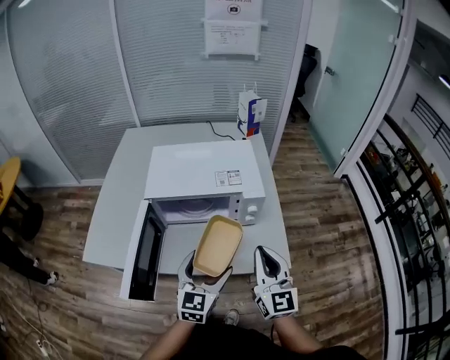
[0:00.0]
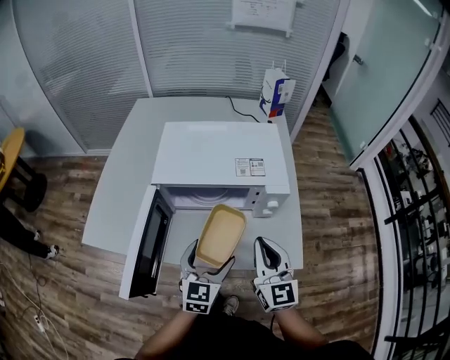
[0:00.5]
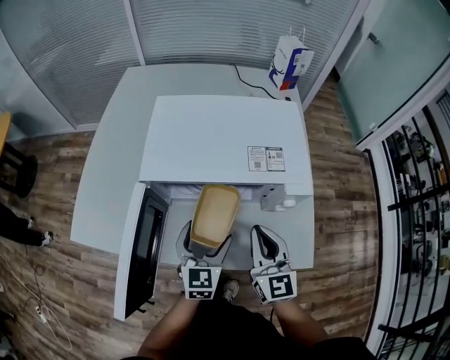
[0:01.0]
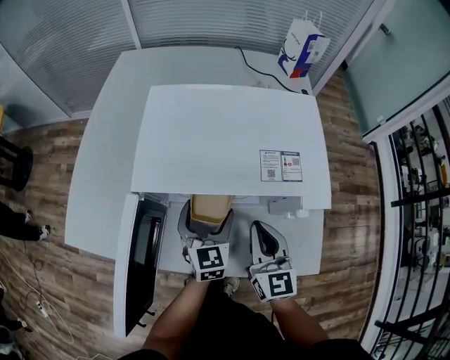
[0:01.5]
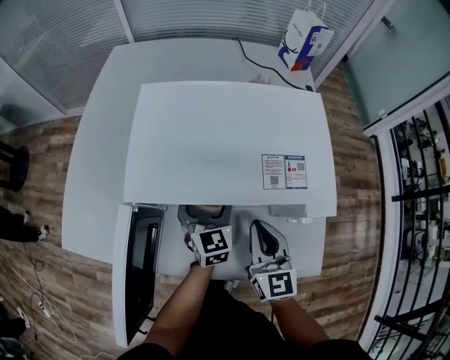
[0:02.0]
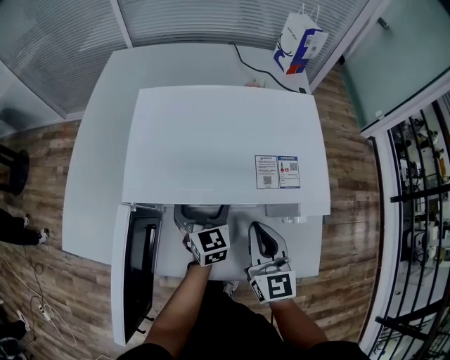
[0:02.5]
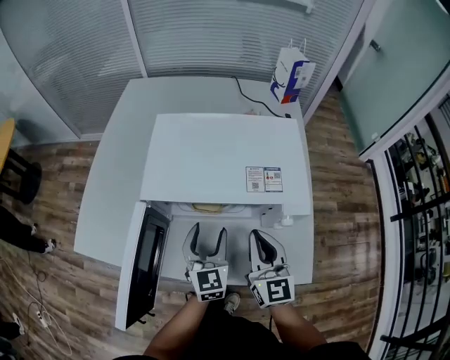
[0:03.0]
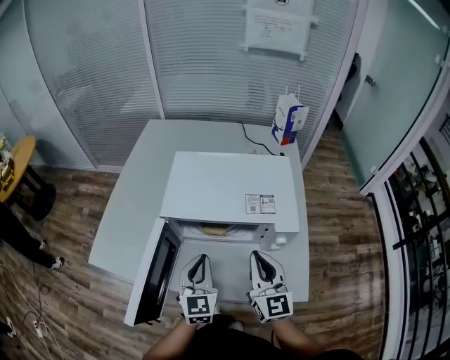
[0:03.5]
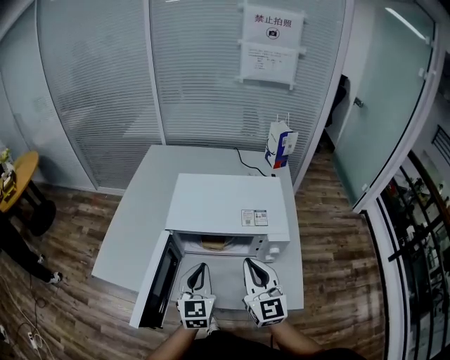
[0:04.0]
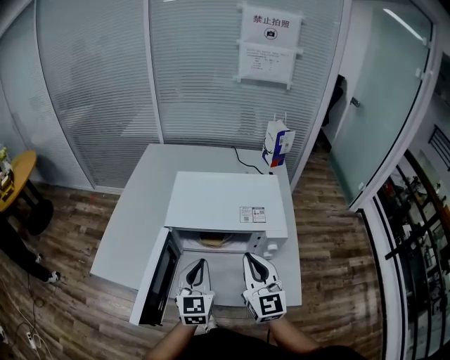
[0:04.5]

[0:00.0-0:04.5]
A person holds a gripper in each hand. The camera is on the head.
0:00.0 to 0:02.0: The right gripper is displaced forward, downward and to the left by about 25 cm; the left gripper moves forward and downward, some 30 cm, and rotates approximately 30 degrees.
0:02.0 to 0:04.5: The two grippers go approximately 20 cm upward and backward. The left gripper closes its fingers.

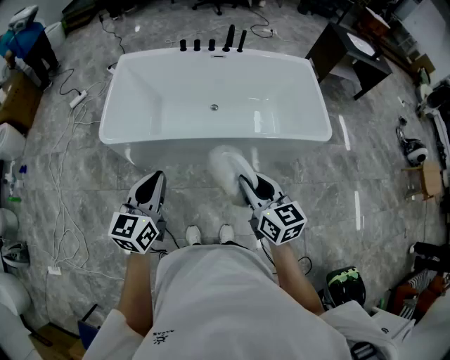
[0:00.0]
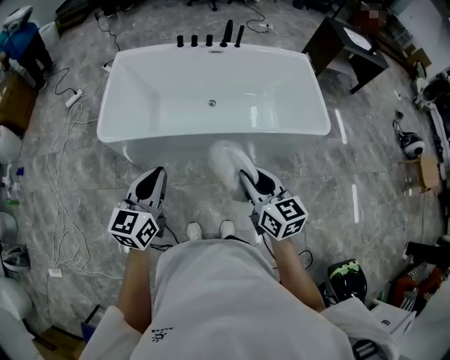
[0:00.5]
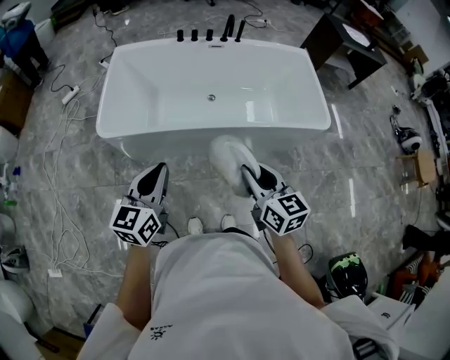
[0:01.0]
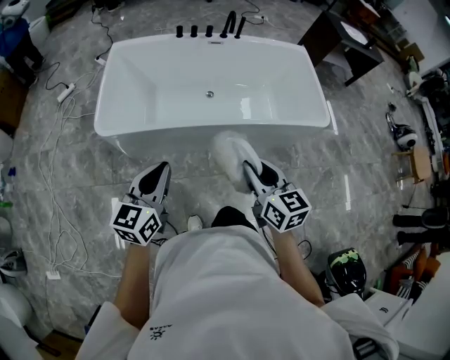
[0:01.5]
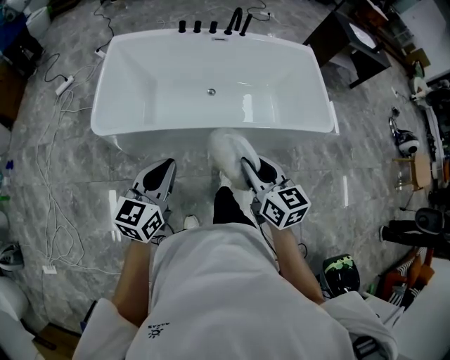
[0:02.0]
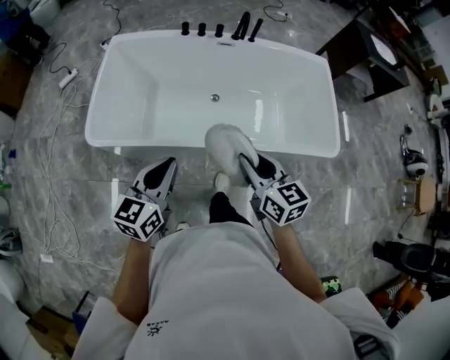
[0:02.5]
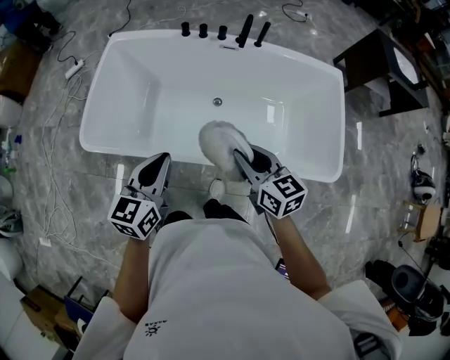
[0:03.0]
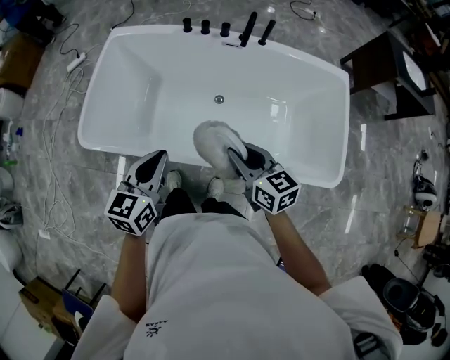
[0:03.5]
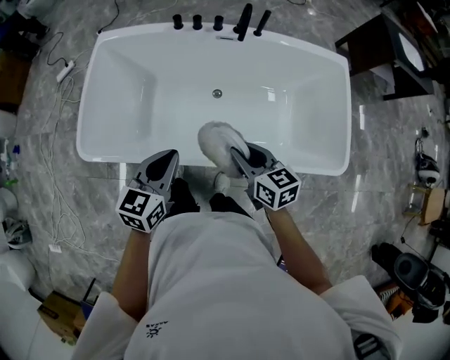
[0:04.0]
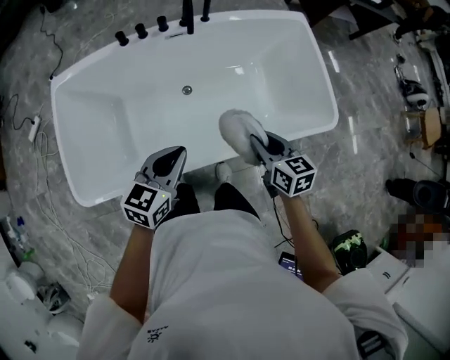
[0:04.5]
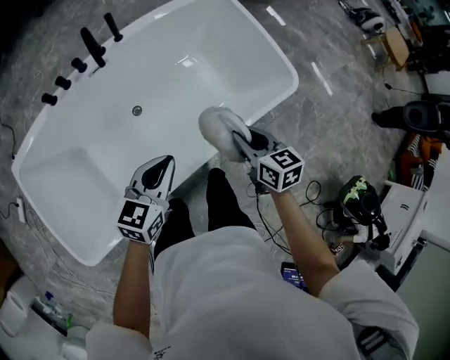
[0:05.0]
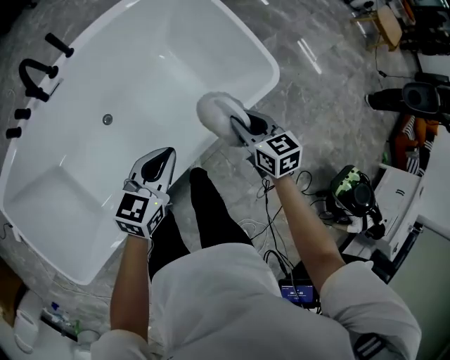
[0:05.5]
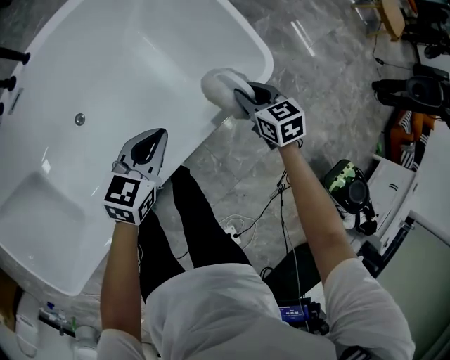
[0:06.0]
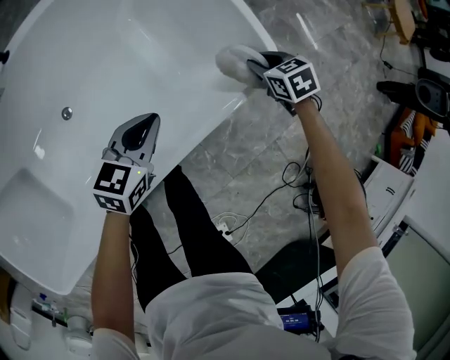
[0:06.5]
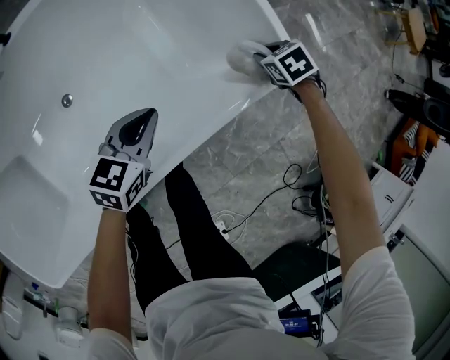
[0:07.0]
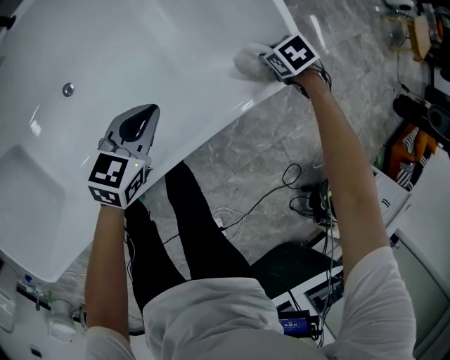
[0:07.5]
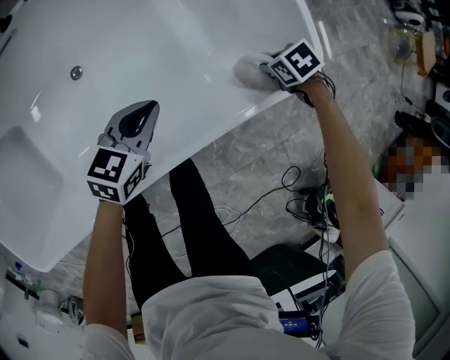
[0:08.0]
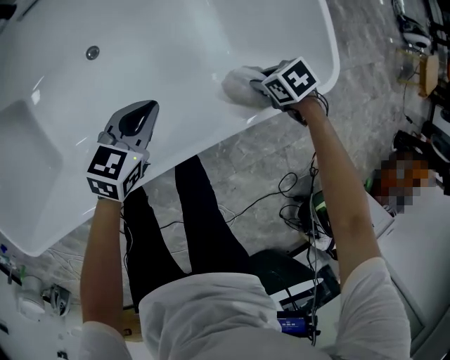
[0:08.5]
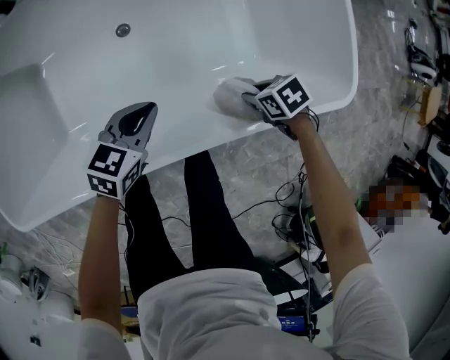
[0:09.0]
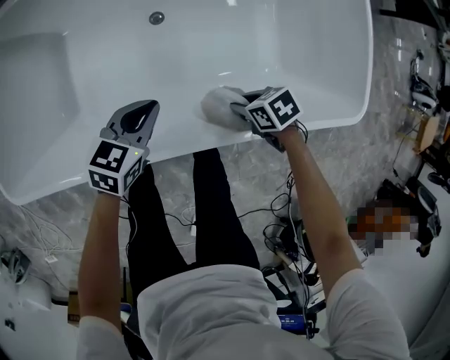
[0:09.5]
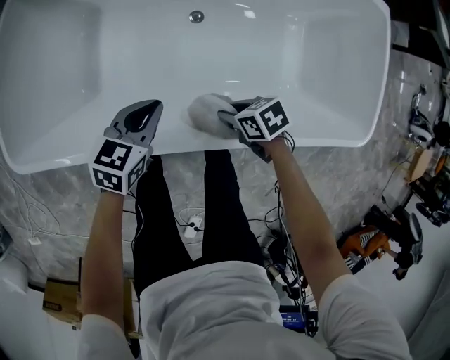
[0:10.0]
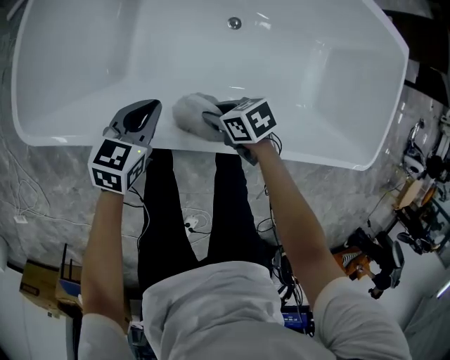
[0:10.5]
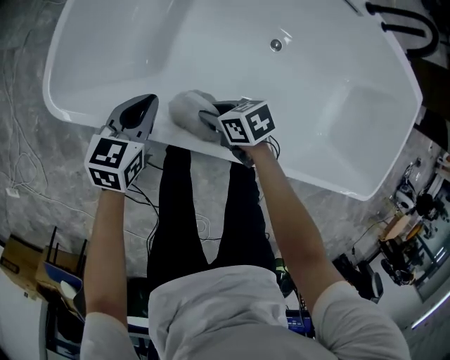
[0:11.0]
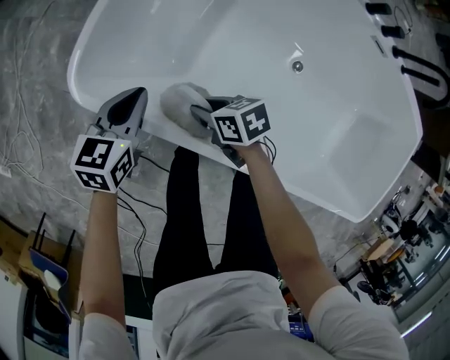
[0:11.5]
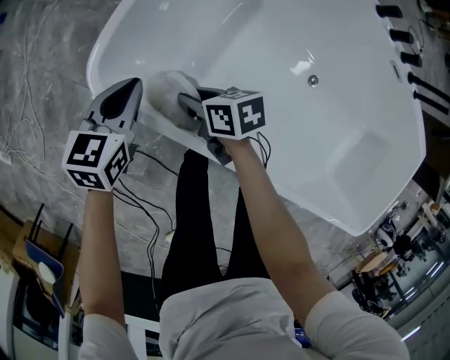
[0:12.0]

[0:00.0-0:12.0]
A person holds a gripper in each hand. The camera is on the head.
0:00.0 to 0:02.0: The left gripper changes place by some 5 cm.
0:02.0 to 0:04.0: The left gripper ends up roughly 30 cm from where it was.
0:04.0 to 0:06.0: The left gripper changes place by roughly 50 cm, and swivels roughly 50 degrees.
0:06.0 to 0:08.0: The left gripper moves downward, some 10 cm.
0:08.0 to 0:10.0: The left gripper ends up about 40 cm from where it was, and swivels some 30 degrees.
0:10.0 to 0:12.0: The left gripper shifts by about 50 cm, and changes its angle by some 40 degrees.

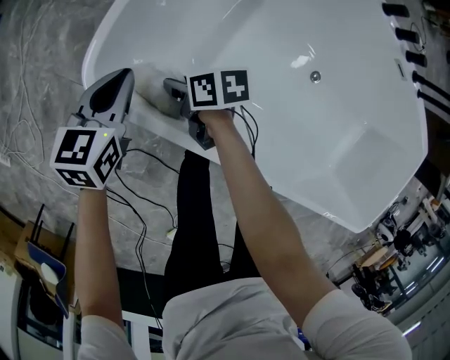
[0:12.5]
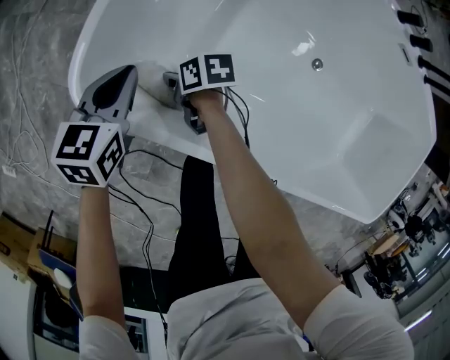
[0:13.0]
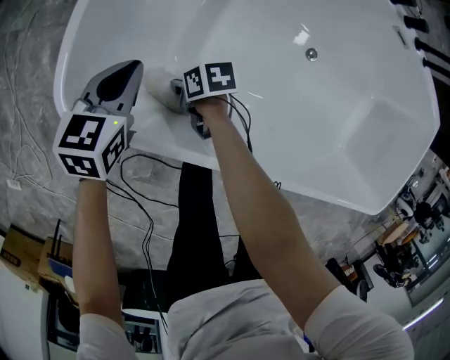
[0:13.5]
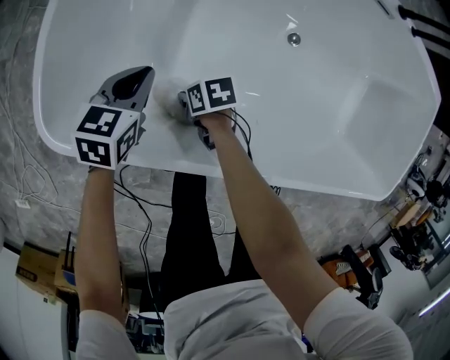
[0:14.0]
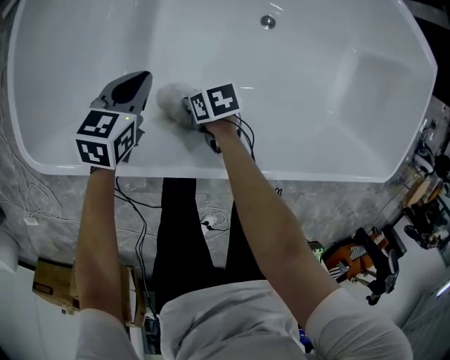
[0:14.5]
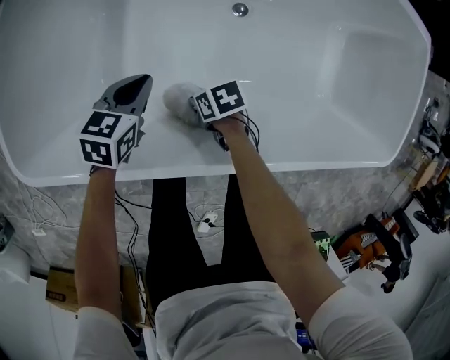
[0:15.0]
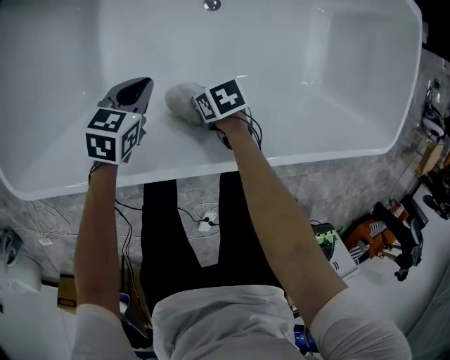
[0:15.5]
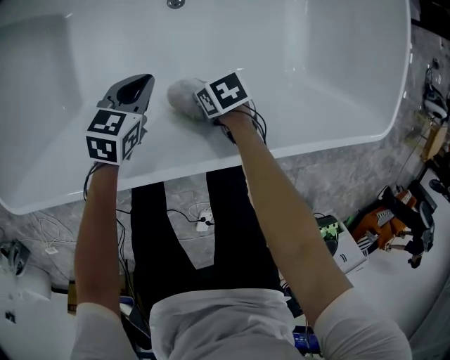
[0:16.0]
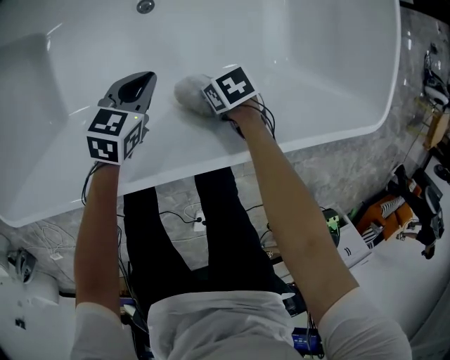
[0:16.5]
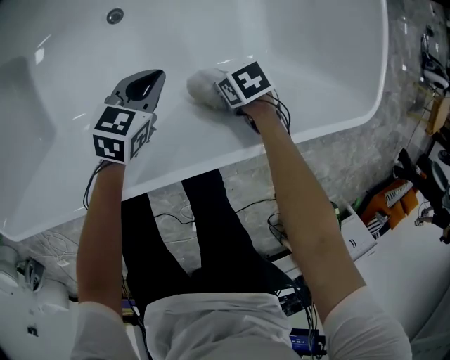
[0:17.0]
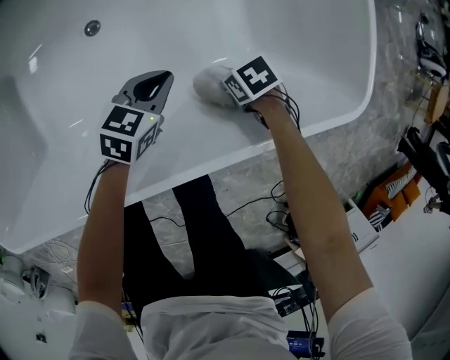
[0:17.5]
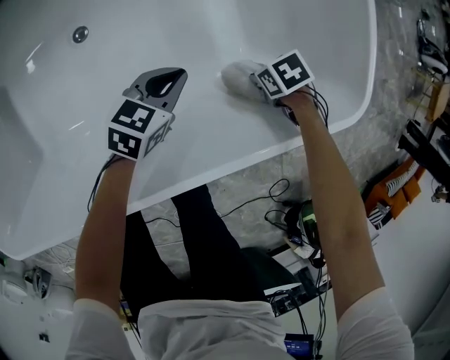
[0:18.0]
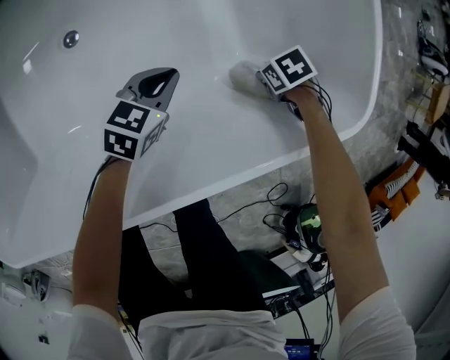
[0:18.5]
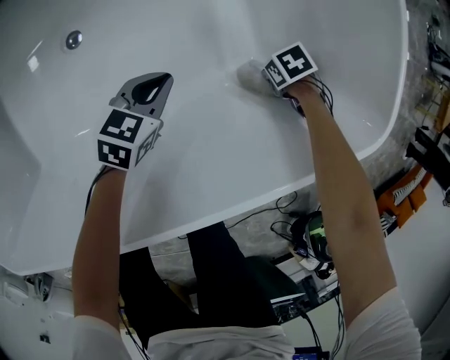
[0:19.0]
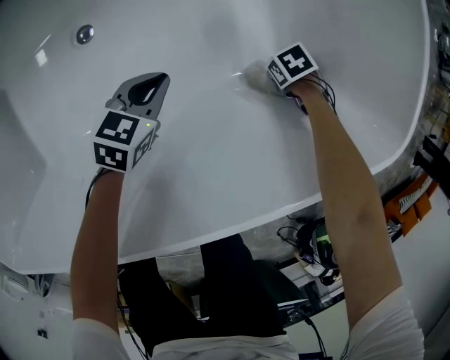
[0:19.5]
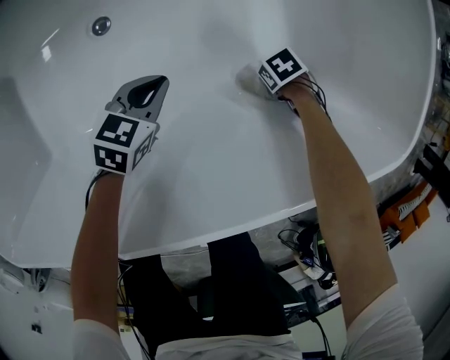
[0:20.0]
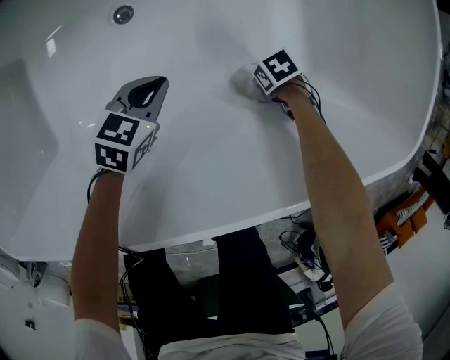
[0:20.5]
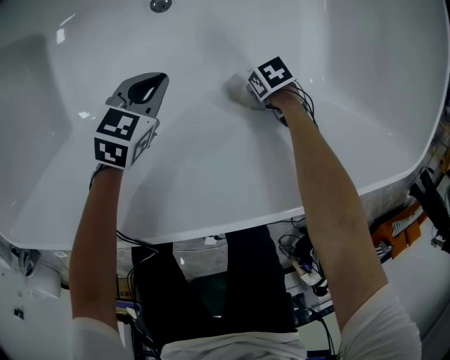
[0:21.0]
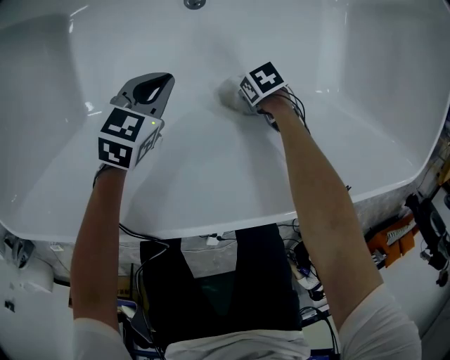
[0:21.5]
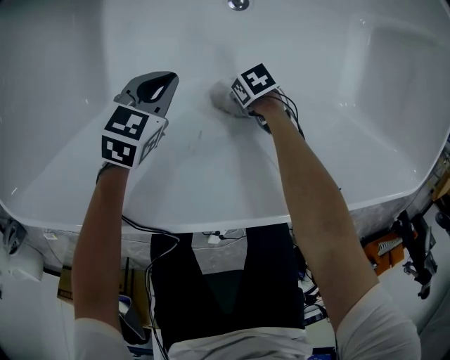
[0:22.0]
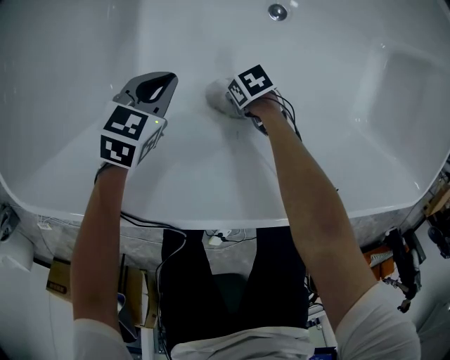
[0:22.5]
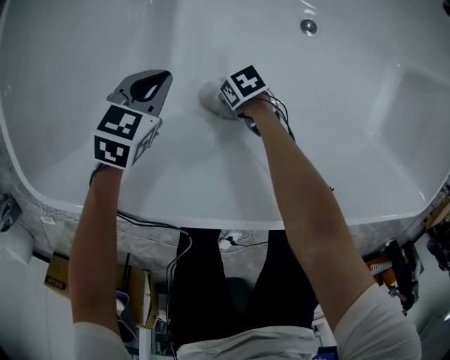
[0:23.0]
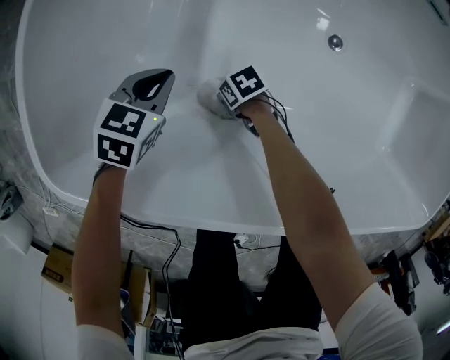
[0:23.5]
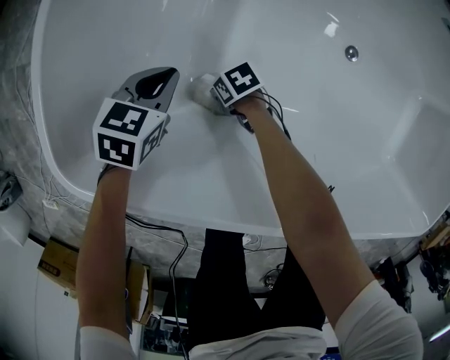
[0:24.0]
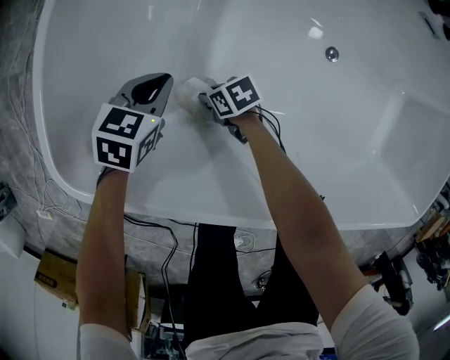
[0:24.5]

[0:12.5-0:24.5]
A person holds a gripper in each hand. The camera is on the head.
0:12.5 to 0:14.5: The left gripper moves approximately 30 cm, and changes its angle by some 30 degrees.
0:14.5 to 0:16.5: The left gripper shifts by roughly 40 cm, and changes its angle by roughly 20 degrees.
0:16.5 to 0:18.5: The left gripper ends up some 25 cm from where it was.
0:18.5 to 0:20.5: The left gripper moves about 20 cm.
0:20.5 to 0:22.5: The left gripper ends up about 40 cm from where it was.
0:22.5 to 0:24.5: The left gripper ends up some 25 cm from where it was.
